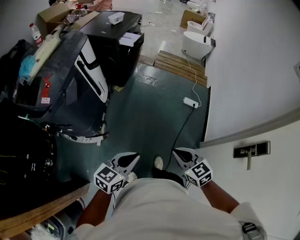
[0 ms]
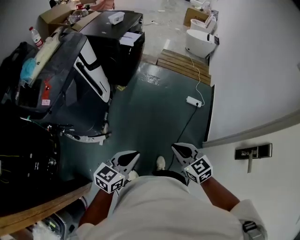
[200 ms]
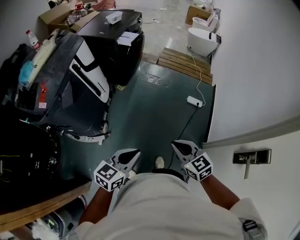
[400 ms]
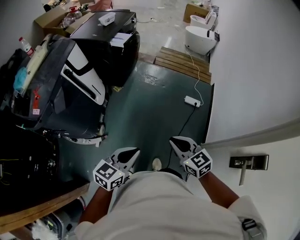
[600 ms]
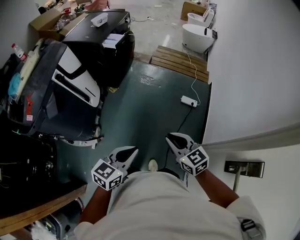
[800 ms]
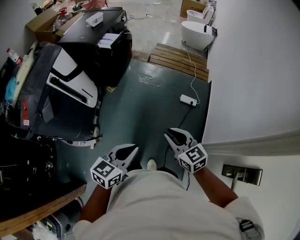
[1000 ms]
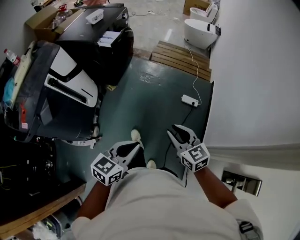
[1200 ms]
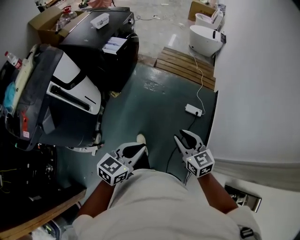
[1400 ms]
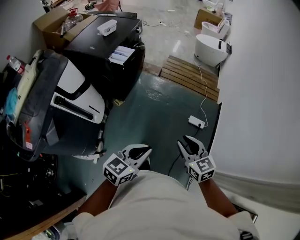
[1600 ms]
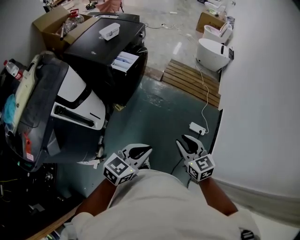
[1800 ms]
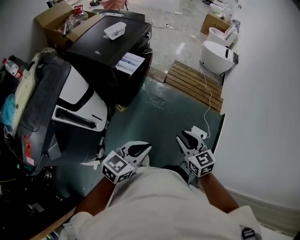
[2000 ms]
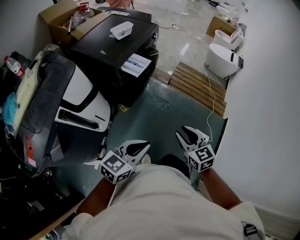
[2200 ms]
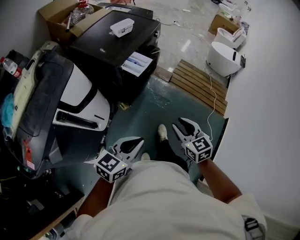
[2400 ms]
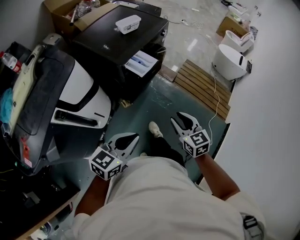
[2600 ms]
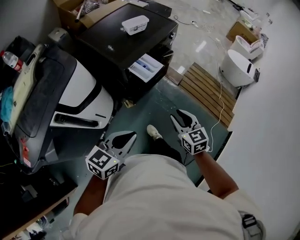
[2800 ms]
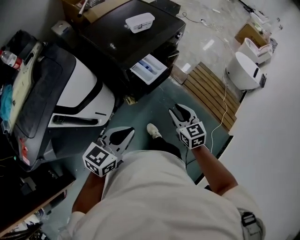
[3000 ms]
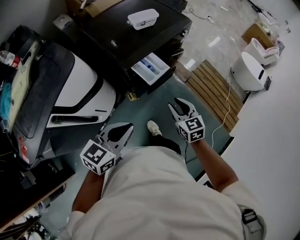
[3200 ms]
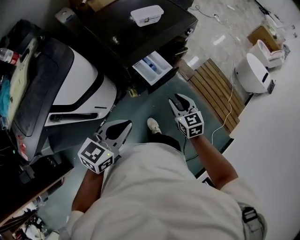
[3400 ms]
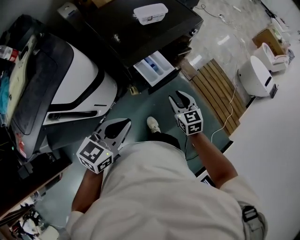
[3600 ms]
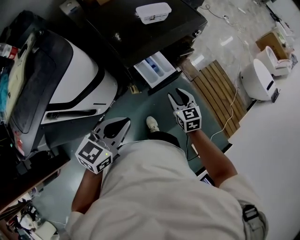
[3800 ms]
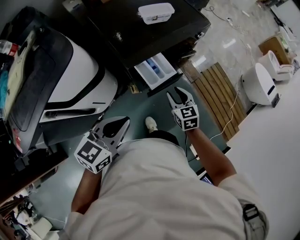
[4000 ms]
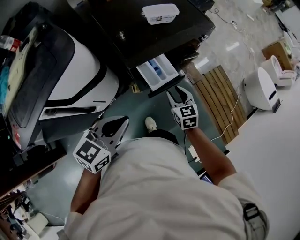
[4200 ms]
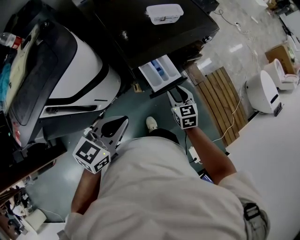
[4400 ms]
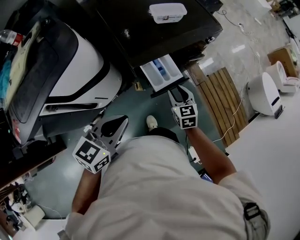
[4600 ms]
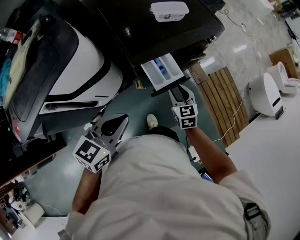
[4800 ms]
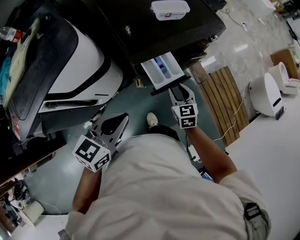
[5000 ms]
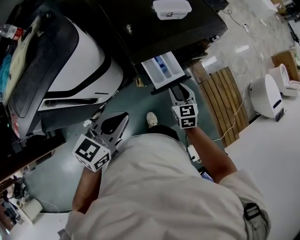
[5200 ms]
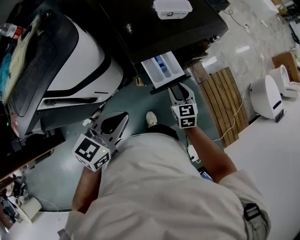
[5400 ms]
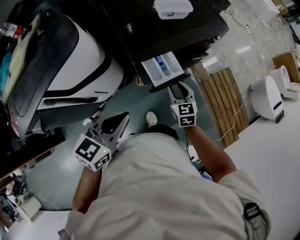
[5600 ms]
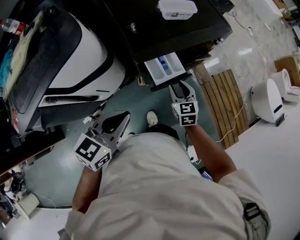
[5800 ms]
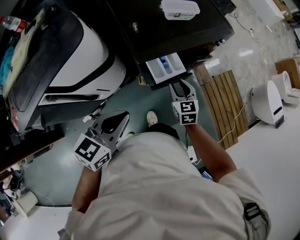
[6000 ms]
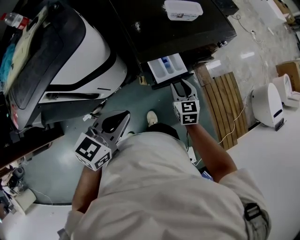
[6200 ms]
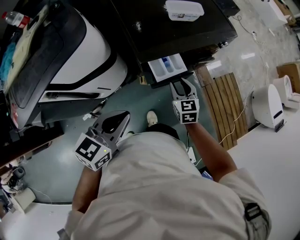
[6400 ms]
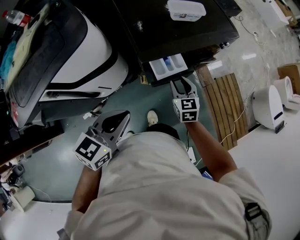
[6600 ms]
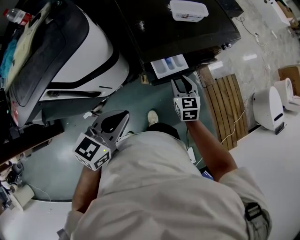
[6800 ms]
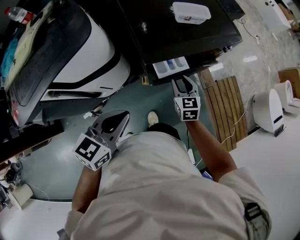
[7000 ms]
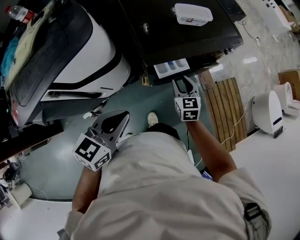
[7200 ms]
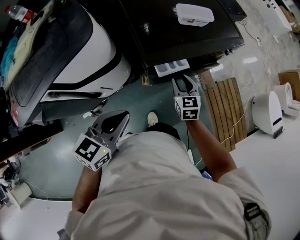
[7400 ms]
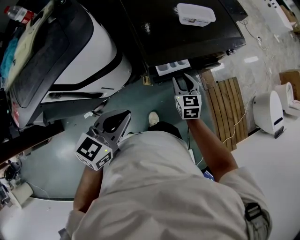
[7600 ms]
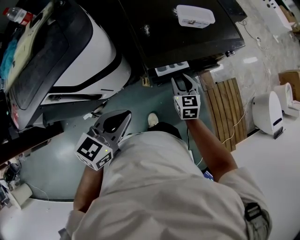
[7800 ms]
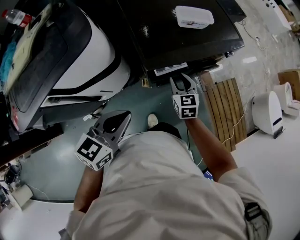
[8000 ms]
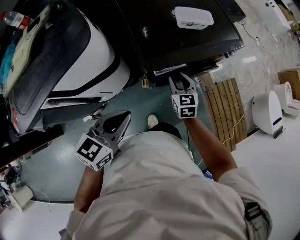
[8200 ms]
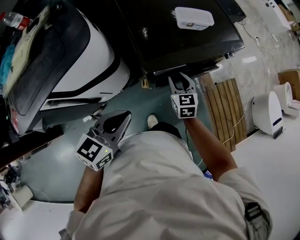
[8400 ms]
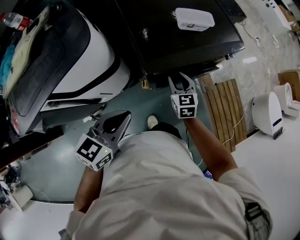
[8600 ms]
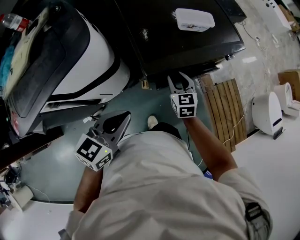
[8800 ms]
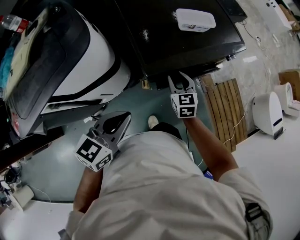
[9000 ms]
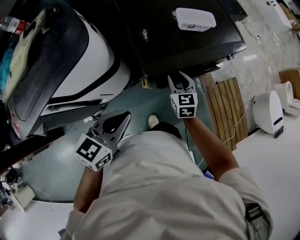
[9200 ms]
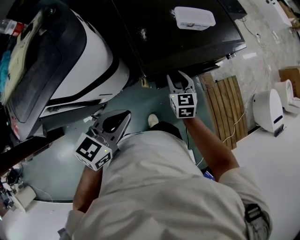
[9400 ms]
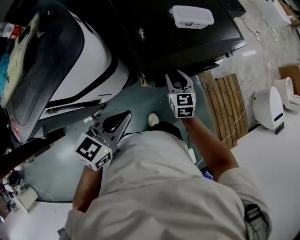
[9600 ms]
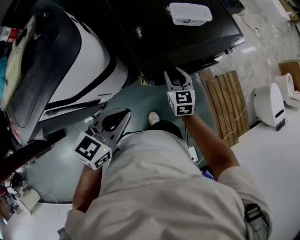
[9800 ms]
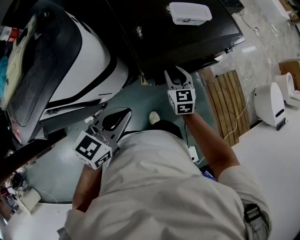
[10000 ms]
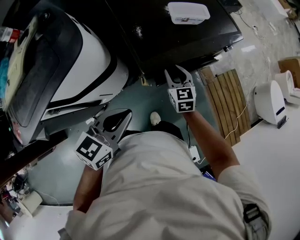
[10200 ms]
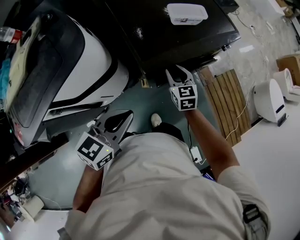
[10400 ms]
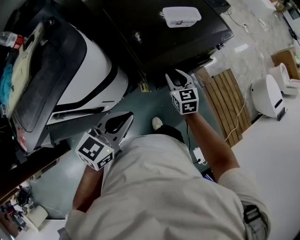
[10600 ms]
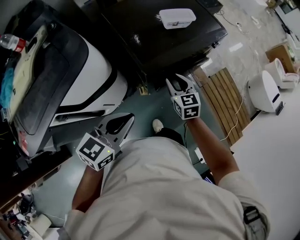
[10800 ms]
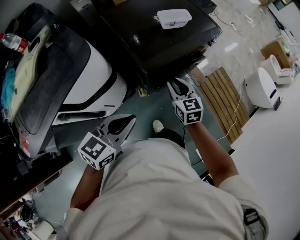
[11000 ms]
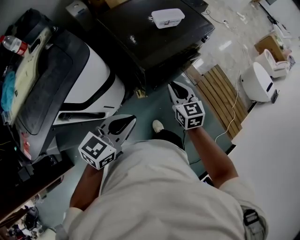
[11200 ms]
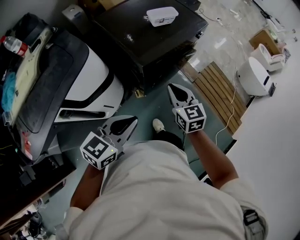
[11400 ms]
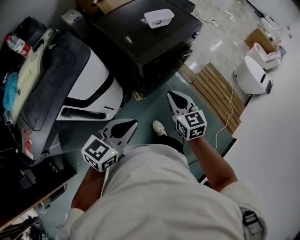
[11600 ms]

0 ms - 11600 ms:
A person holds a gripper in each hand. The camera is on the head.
0 ms - 1400 ms: The grippers both shift forward and to the right by about 30 cm. The right gripper opens up.
1400 ms - 2800 ms: Both grippers move forward and to the left, approximately 40 cm. The left gripper turns by approximately 20 degrees.
2800 ms - 4400 ms: The right gripper shifts roughly 25 cm forward and downward; the left gripper travels forward by roughly 15 cm, and rotates roughly 20 degrees.
4400 ms - 5800 ms: The grippers stay close to where they were, moving slightly.
5800 ms - 7200 ms: The right gripper ends up roughly 5 cm from where it was.
7200 ms - 8800 ms: The right gripper changes place by approximately 5 cm.
8800 ms - 10200 ms: There are only small adjustments of the grippers.
10200 ms - 11600 ms: The right gripper travels backward and upward by approximately 30 cm, and closes. The left gripper heads backward, covering approximately 15 cm, and changes its angle by some 20 degrees.

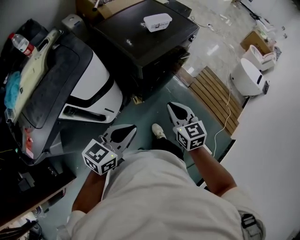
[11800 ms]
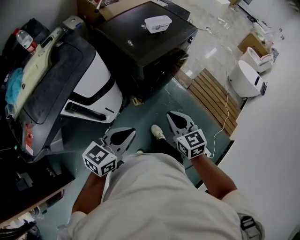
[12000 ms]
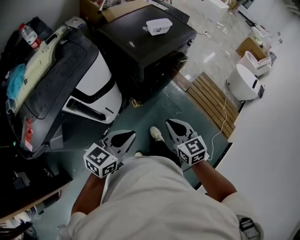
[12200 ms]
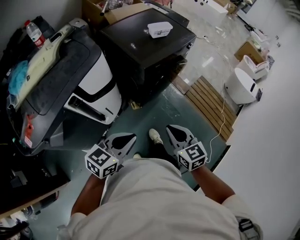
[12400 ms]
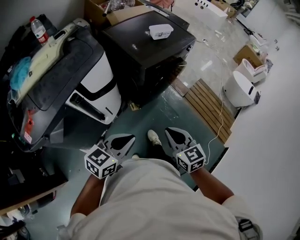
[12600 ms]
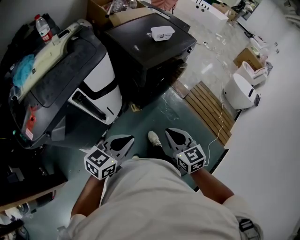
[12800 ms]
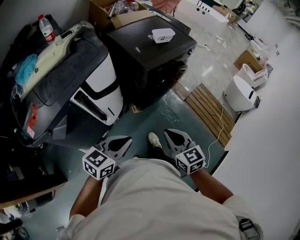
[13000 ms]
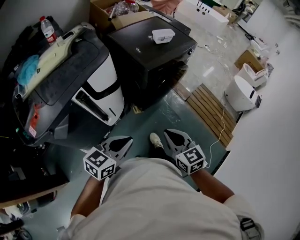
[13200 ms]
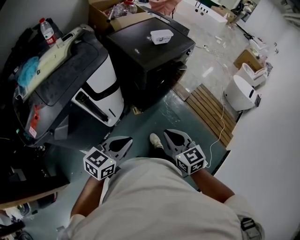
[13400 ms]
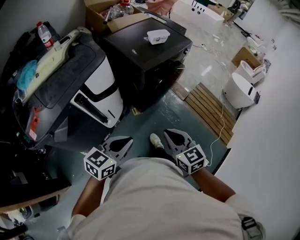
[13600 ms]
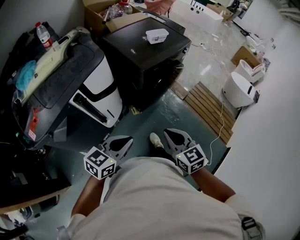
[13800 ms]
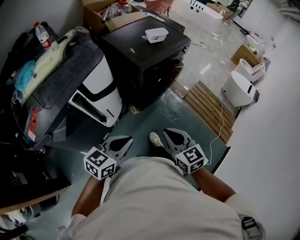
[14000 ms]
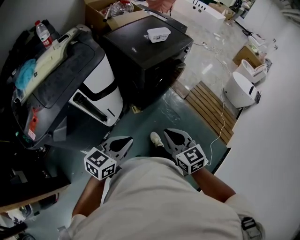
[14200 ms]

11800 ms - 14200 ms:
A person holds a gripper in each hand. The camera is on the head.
11800 ms - 13000 ms: The grippers both shift backward by about 15 cm.
13000 ms - 14200 ms: The grippers move only a little.

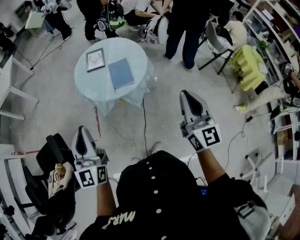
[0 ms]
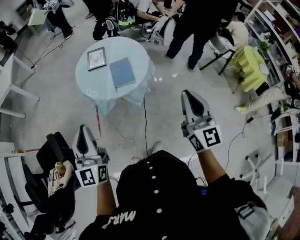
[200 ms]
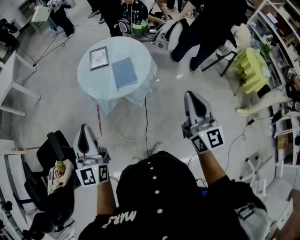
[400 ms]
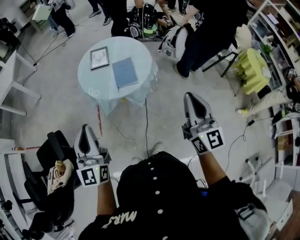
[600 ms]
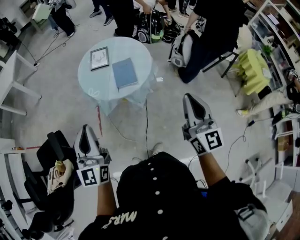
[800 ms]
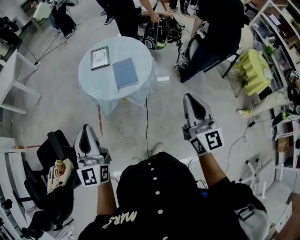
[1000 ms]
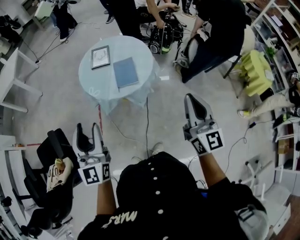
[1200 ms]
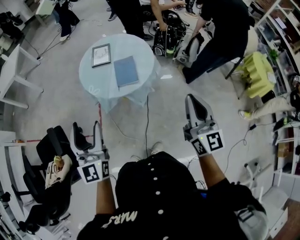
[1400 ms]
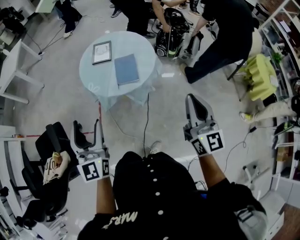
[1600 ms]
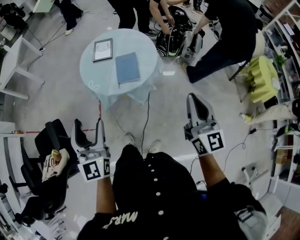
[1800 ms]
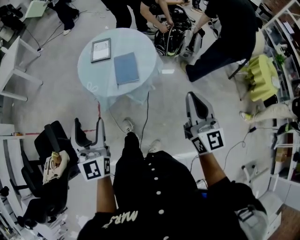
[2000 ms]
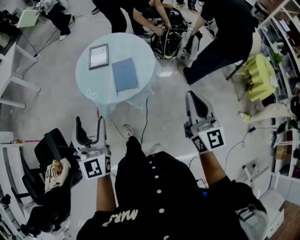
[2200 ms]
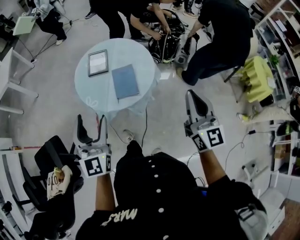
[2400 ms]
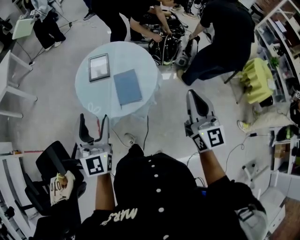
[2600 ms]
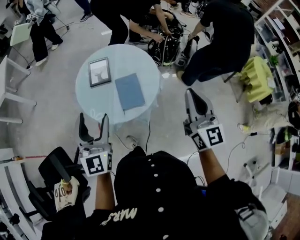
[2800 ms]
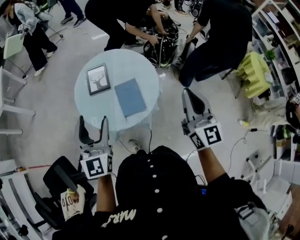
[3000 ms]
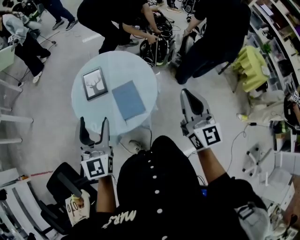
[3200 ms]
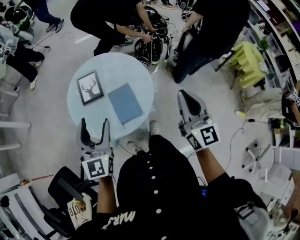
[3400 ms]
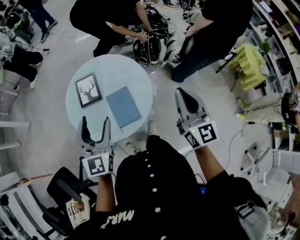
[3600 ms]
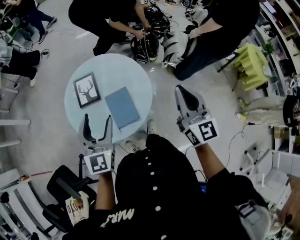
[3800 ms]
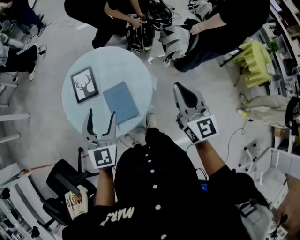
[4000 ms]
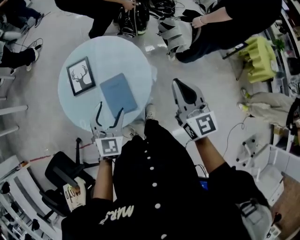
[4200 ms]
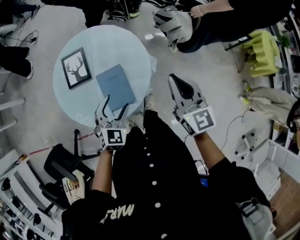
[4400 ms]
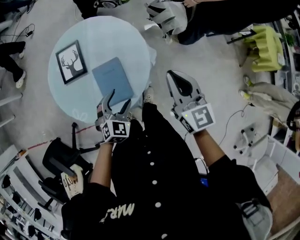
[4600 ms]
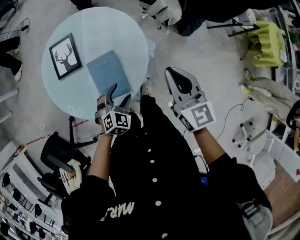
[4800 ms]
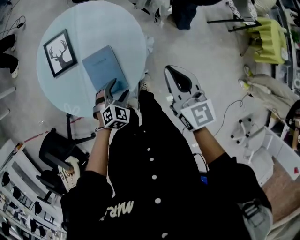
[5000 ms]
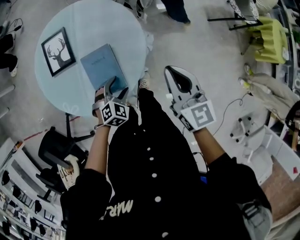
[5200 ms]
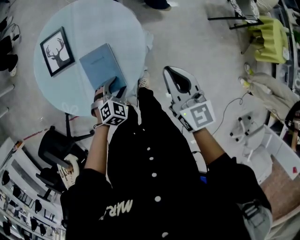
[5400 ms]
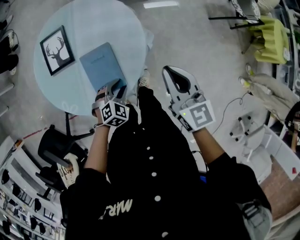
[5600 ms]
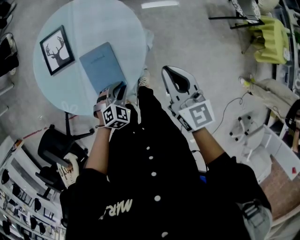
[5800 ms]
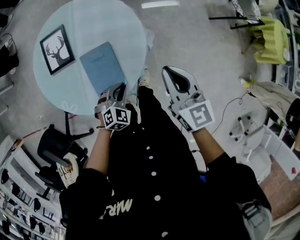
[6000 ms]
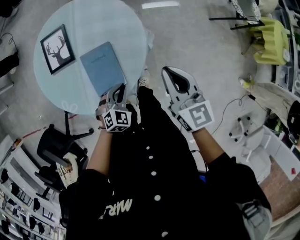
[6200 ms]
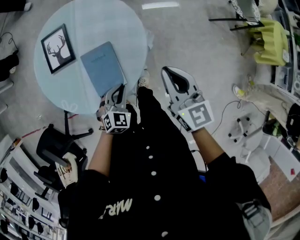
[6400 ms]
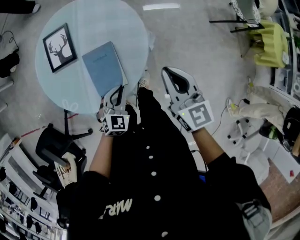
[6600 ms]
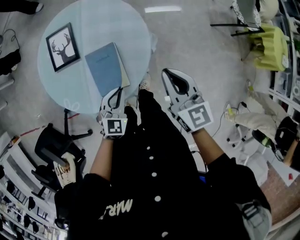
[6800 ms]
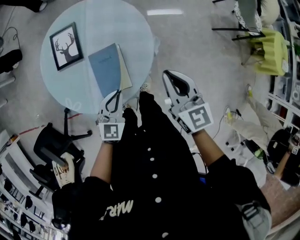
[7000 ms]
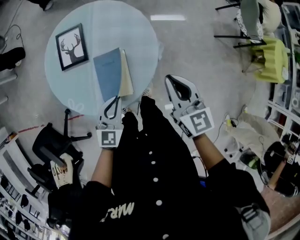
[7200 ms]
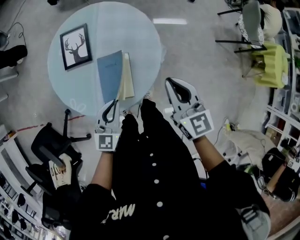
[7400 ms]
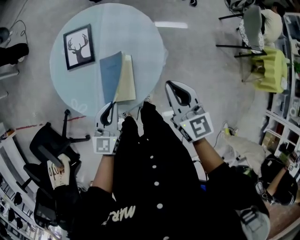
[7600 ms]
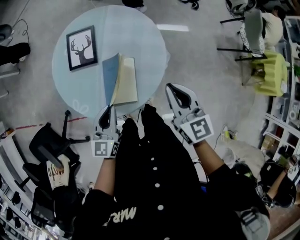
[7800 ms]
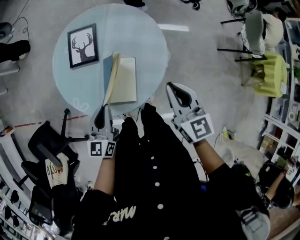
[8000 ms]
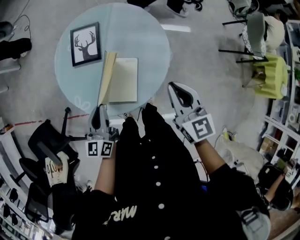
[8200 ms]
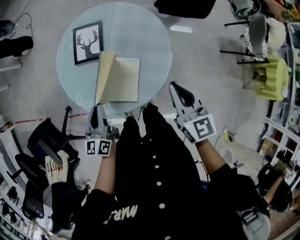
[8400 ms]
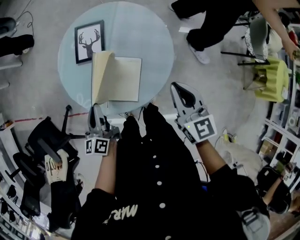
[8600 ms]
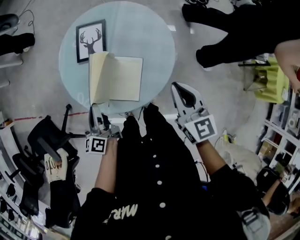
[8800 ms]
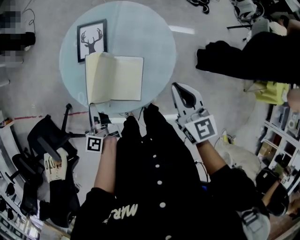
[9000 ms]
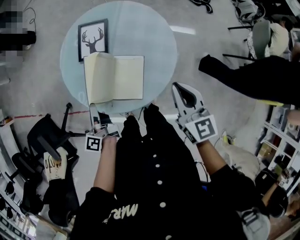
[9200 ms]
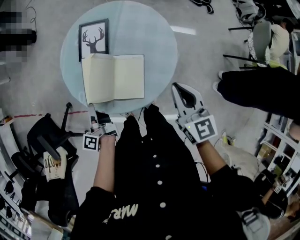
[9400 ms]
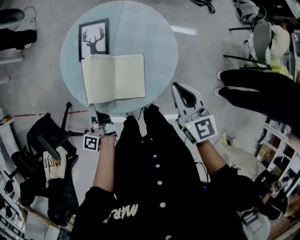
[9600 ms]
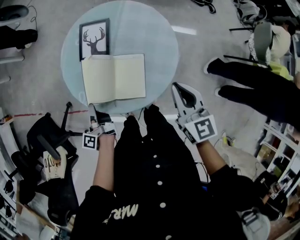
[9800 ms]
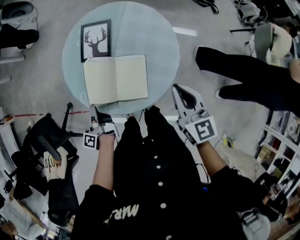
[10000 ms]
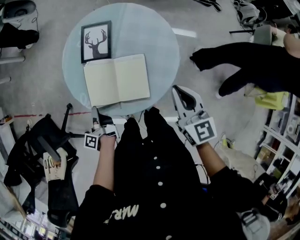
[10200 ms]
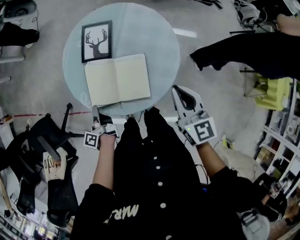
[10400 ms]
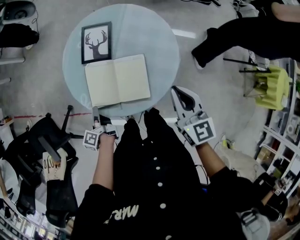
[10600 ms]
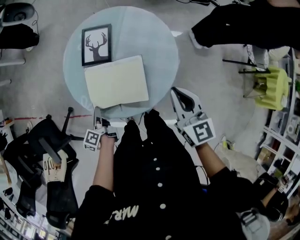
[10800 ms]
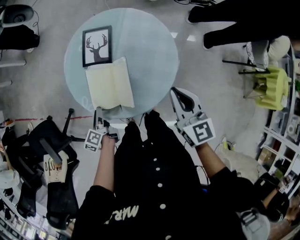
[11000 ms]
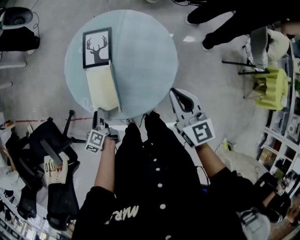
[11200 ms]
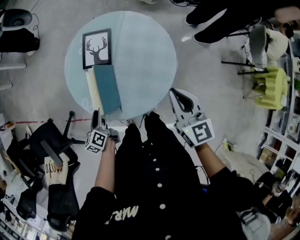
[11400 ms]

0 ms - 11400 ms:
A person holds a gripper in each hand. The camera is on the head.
0 ms - 1400 ms: The left gripper opens.
1400 ms - 2800 ms: Both grippers move forward, roughly 25 cm.
2800 ms - 4200 ms: The right gripper shifts some 20 cm forward and downward. Meanwhile the left gripper goes approximately 25 cm downward, forward and to the right, and rotates some 40 degrees.
4200 ms - 5600 ms: The left gripper shifts approximately 25 cm downward, rotates roughly 40 degrees, and closes its fingers. Meanwhile the right gripper shifts roughly 15 cm downward.
5600 ms - 7200 ms: The left gripper is displaced upward and to the left by approximately 10 cm, changes its angle by approximately 40 degrees, and closes.
7200 ms - 8600 ms: The right gripper travels to the left by approximately 5 cm; the left gripper goes approximately 15 cm to the left, and rolls counterclockwise, seen from behind, by approximately 50 degrees.
8600 ms - 10000 ms: The left gripper is displaced downward and to the left by some 10 cm, and rotates around the line of its fingers by approximately 40 degrees, counterclockwise from behind.
10000 ms - 11400 ms: The left gripper turns by roughly 40 degrees, and opens its fingers.
